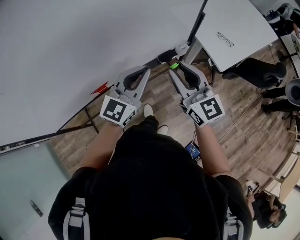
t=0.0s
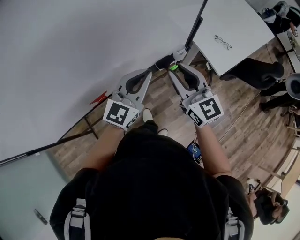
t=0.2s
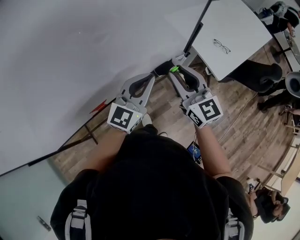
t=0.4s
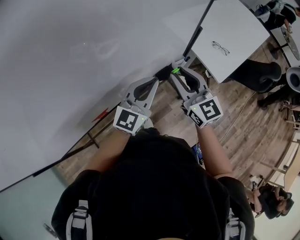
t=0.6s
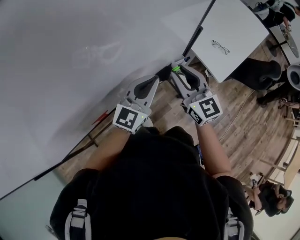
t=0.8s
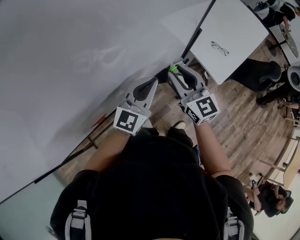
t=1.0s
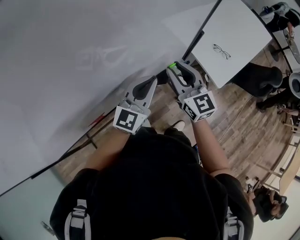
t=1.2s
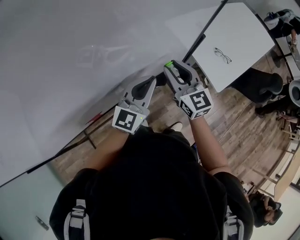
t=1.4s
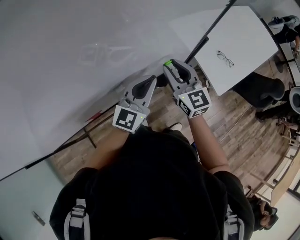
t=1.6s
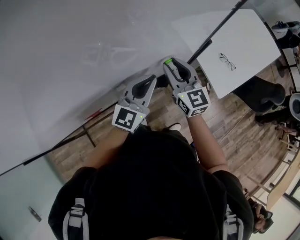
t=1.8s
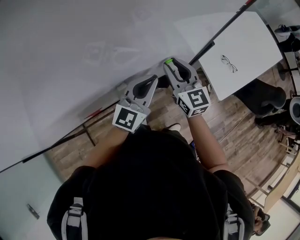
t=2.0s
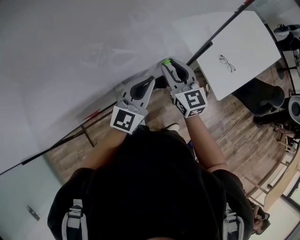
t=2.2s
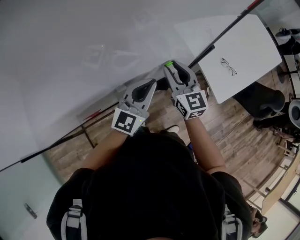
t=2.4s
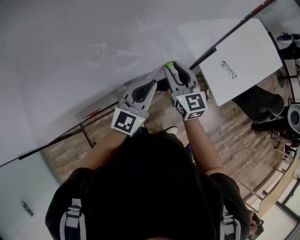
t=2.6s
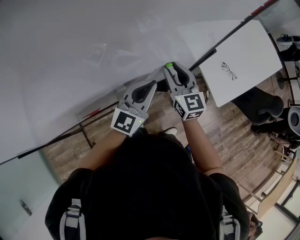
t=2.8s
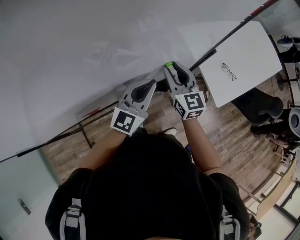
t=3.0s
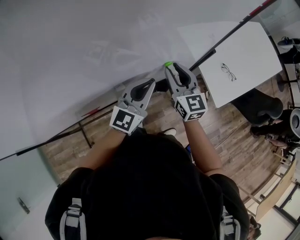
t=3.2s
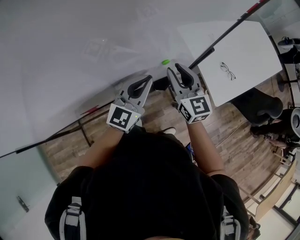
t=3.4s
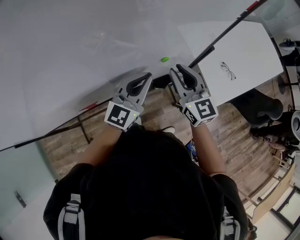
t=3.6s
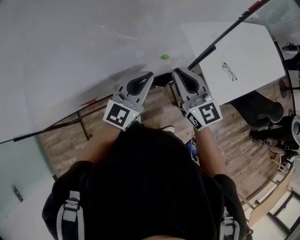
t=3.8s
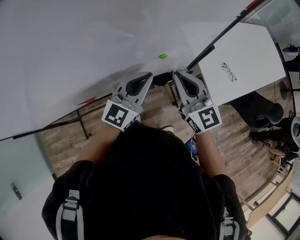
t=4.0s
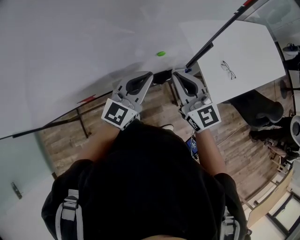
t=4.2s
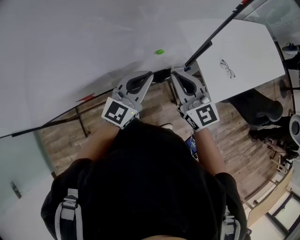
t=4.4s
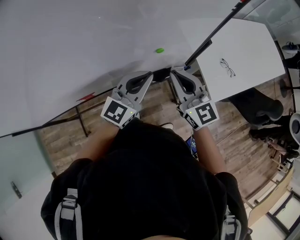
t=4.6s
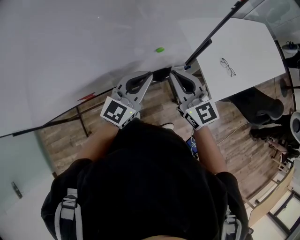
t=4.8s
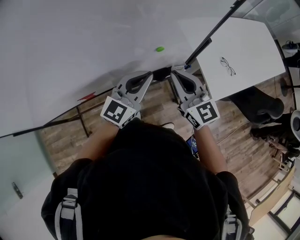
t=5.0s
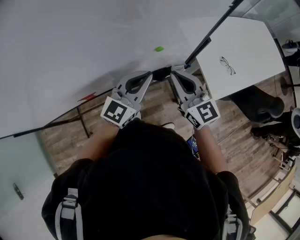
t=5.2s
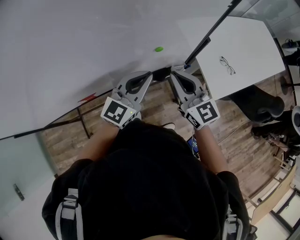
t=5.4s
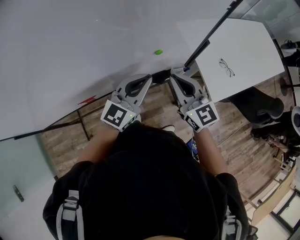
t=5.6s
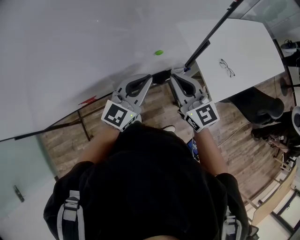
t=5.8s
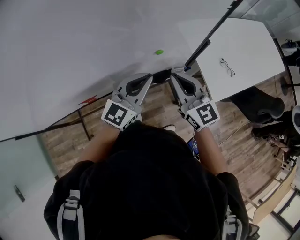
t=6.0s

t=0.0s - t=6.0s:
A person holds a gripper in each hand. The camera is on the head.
t=0.0s - t=1.6s: Both grippers travel together forward, approximately 20 cm.
t=1.6s - t=3.0s: The grippers move only a little.
t=3.0s - t=4.4s: The right gripper travels backward by some 10 cm, and closes its fingers.
t=4.4s - t=6.0s: Both grippers stay about where they are.

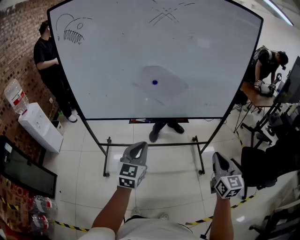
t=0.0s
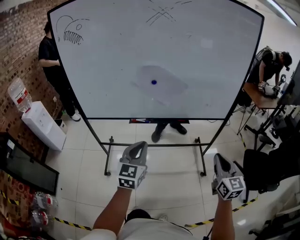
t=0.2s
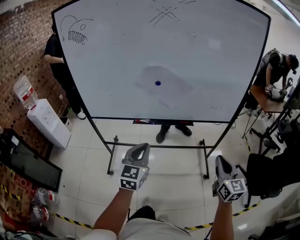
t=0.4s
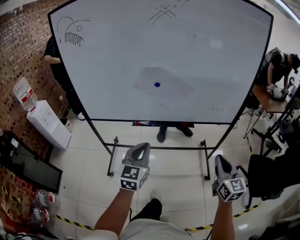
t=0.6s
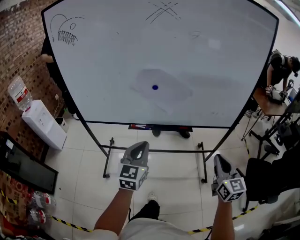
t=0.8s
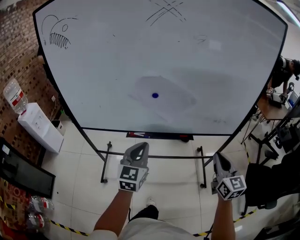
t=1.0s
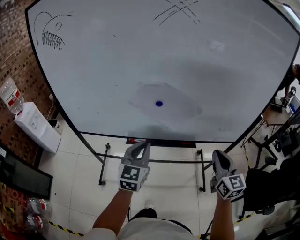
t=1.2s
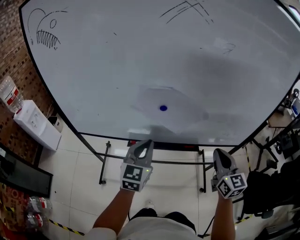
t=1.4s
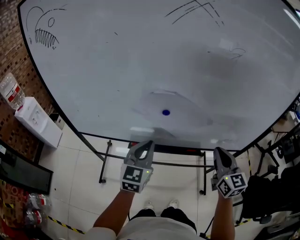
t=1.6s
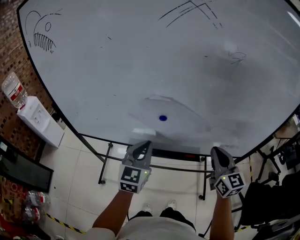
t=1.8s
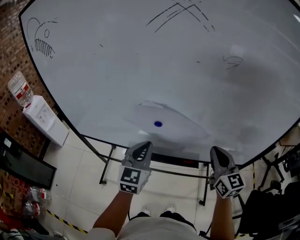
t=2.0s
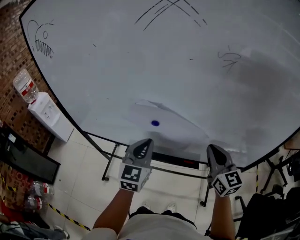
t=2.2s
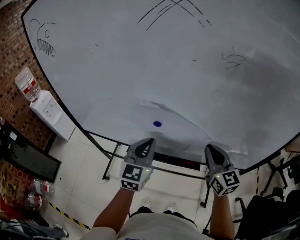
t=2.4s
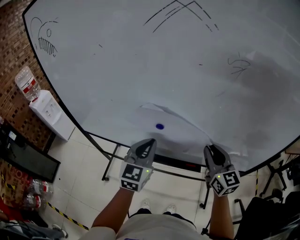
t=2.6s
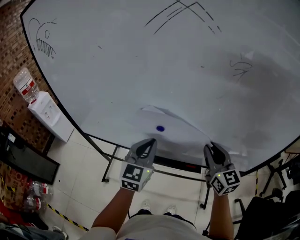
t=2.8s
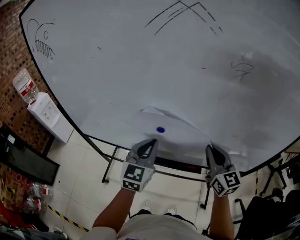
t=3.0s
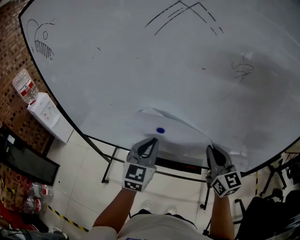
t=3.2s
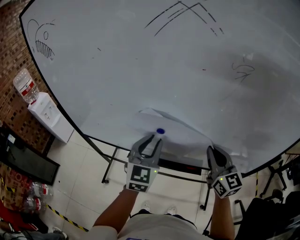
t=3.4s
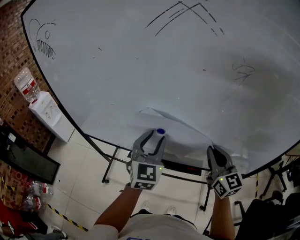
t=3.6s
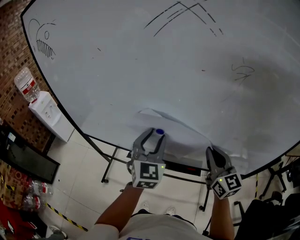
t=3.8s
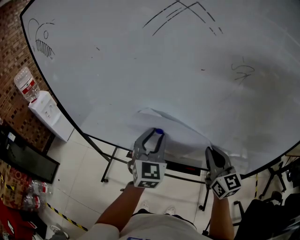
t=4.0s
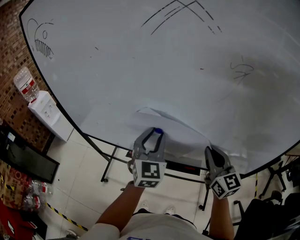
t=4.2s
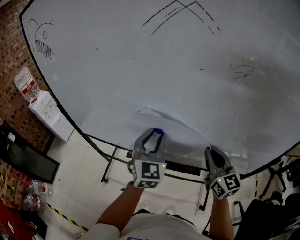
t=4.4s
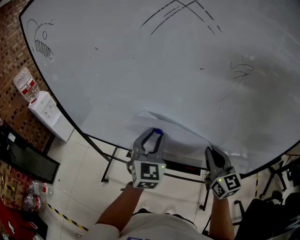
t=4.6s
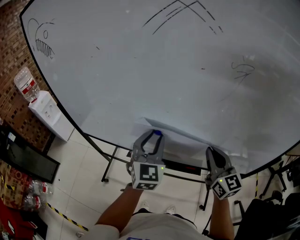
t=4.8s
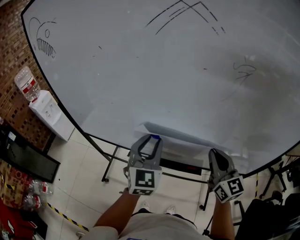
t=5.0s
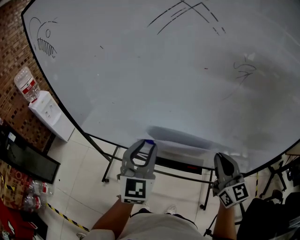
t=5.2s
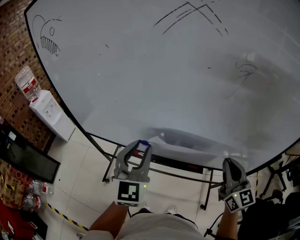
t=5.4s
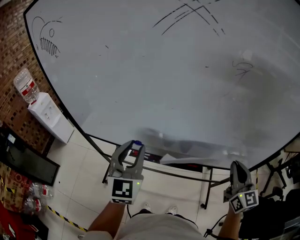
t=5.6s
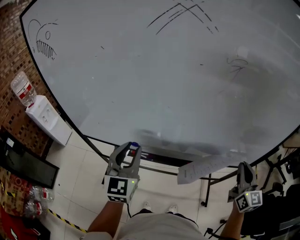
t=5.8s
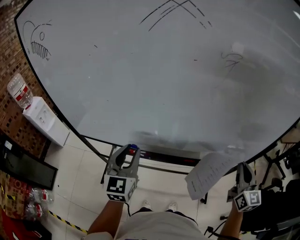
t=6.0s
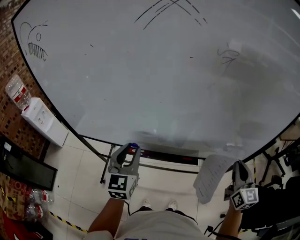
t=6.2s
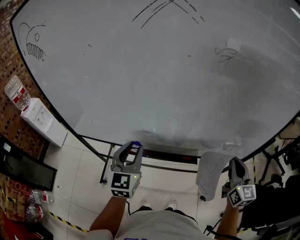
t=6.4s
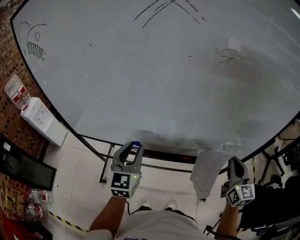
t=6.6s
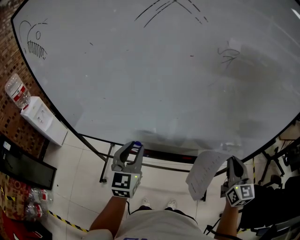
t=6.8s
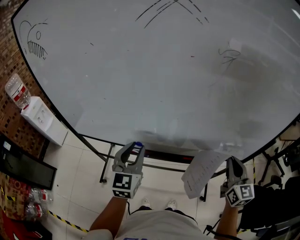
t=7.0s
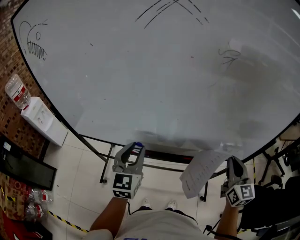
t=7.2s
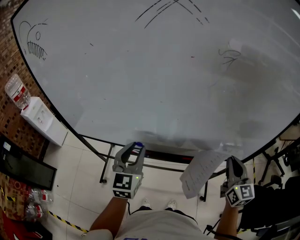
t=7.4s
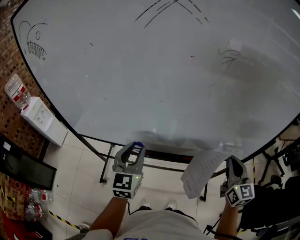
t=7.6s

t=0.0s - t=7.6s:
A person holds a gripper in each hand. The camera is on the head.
t=0.0s - t=1.6s: The two grippers go some 30 cm forward.
t=1.6s - t=3.0s: The right gripper goes some 10 cm forward. The left gripper travels forward by roughly 5 cm.
t=3.0s - t=4.6s: The left gripper opens.
t=4.6s - t=6.0s: The right gripper shifts some 20 cm to the right and backward, and rotates about 20 degrees. Meanwhile the left gripper shifts some 10 cm to the left and backward.
t=6.0s - t=7.6s: There are only small adjustments of the grippers.

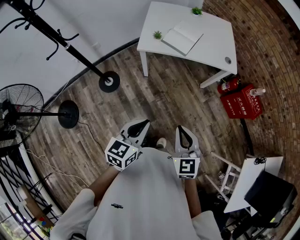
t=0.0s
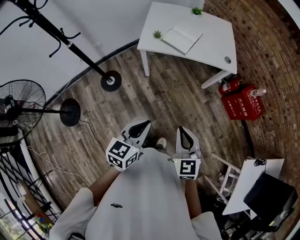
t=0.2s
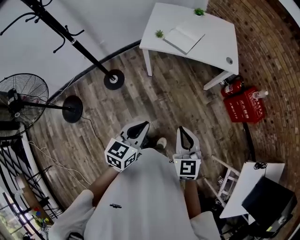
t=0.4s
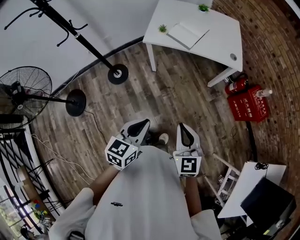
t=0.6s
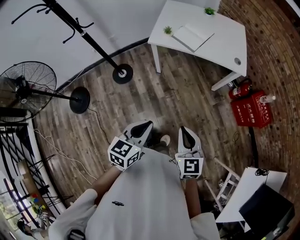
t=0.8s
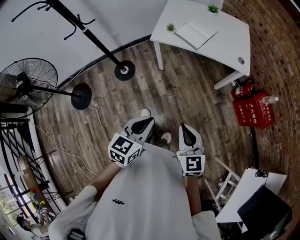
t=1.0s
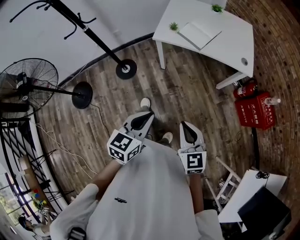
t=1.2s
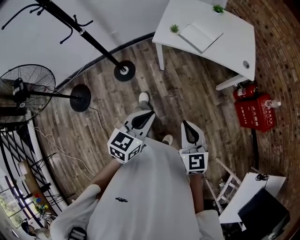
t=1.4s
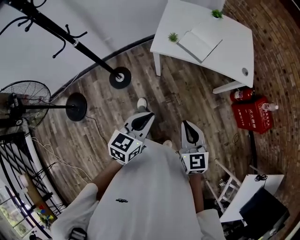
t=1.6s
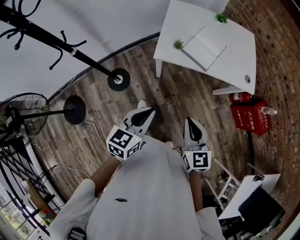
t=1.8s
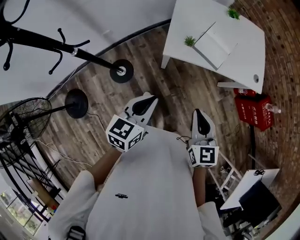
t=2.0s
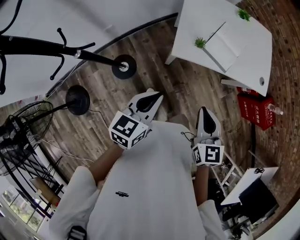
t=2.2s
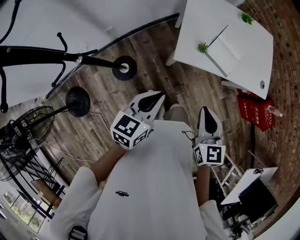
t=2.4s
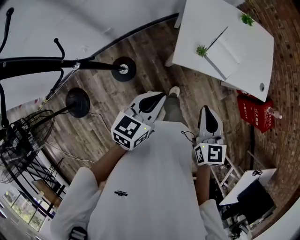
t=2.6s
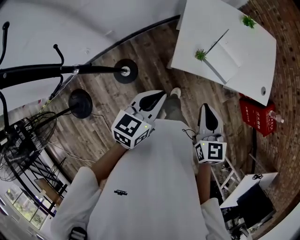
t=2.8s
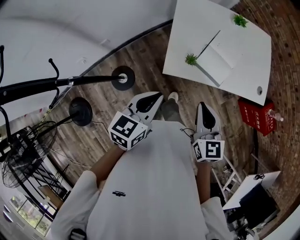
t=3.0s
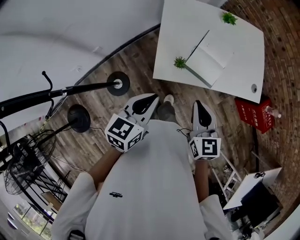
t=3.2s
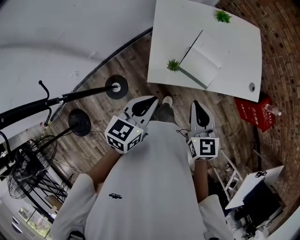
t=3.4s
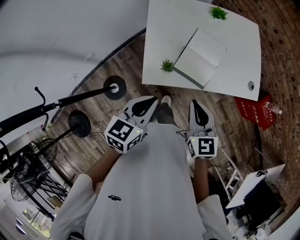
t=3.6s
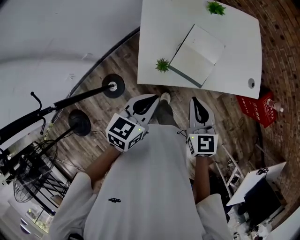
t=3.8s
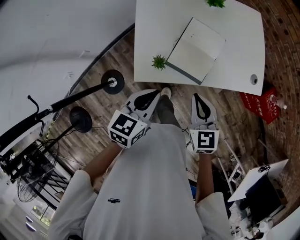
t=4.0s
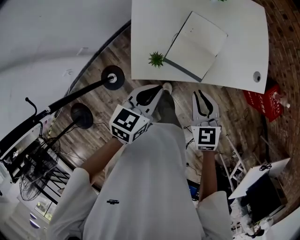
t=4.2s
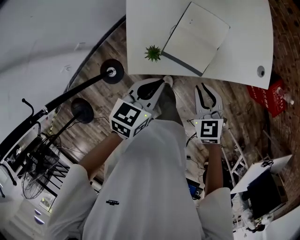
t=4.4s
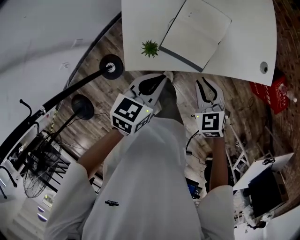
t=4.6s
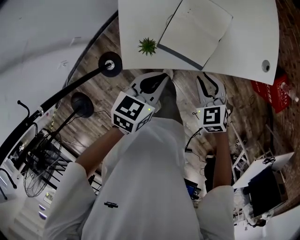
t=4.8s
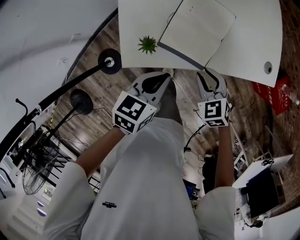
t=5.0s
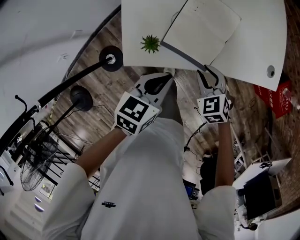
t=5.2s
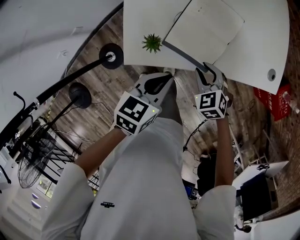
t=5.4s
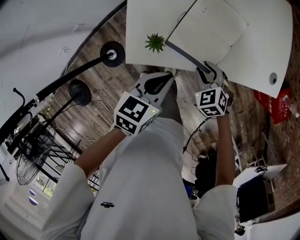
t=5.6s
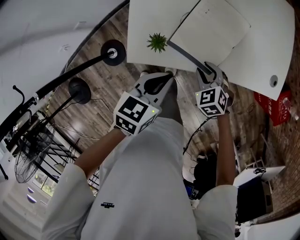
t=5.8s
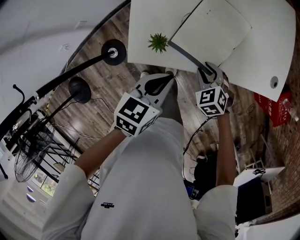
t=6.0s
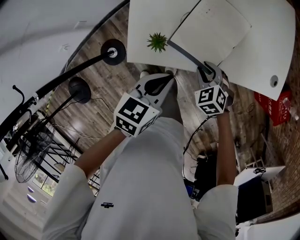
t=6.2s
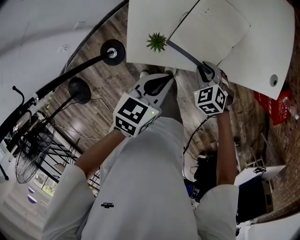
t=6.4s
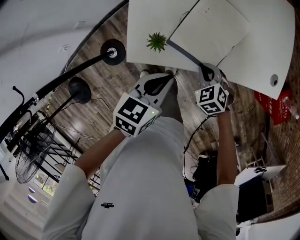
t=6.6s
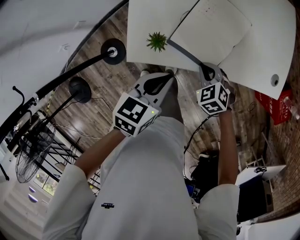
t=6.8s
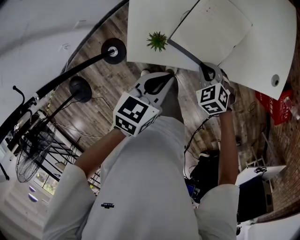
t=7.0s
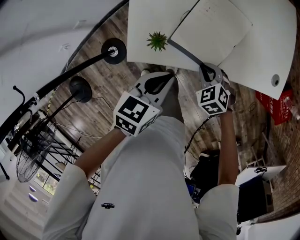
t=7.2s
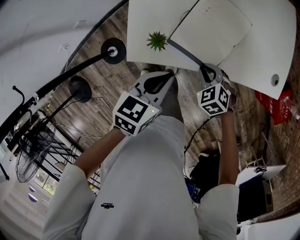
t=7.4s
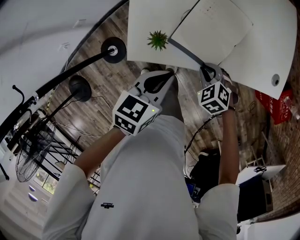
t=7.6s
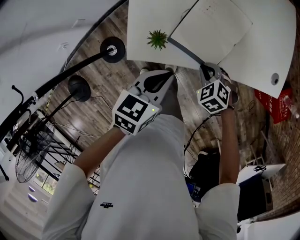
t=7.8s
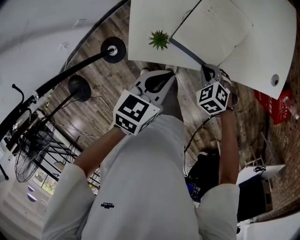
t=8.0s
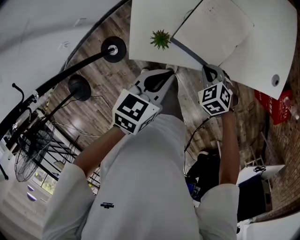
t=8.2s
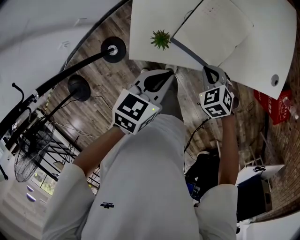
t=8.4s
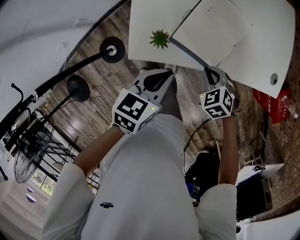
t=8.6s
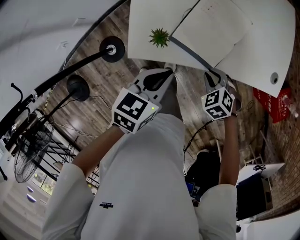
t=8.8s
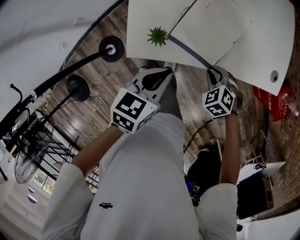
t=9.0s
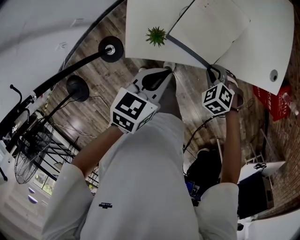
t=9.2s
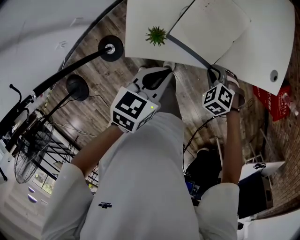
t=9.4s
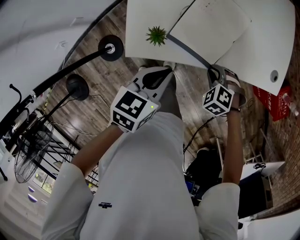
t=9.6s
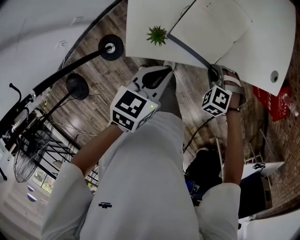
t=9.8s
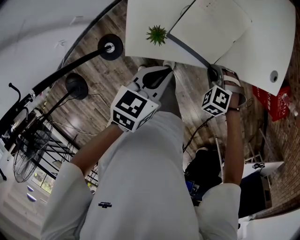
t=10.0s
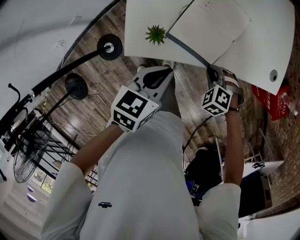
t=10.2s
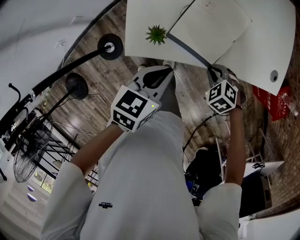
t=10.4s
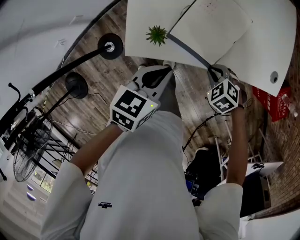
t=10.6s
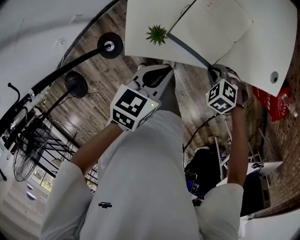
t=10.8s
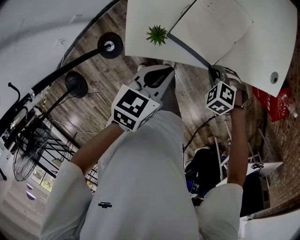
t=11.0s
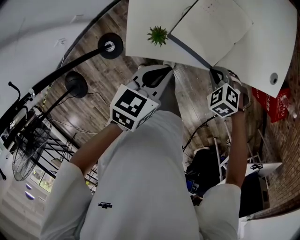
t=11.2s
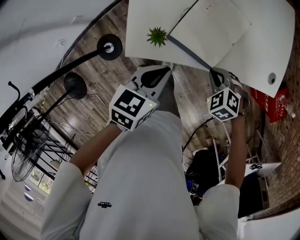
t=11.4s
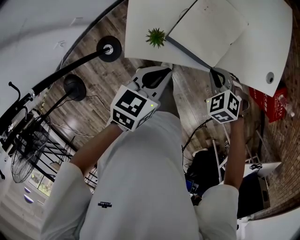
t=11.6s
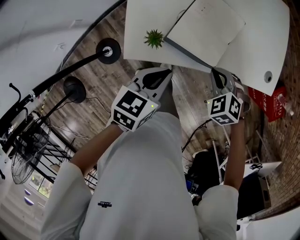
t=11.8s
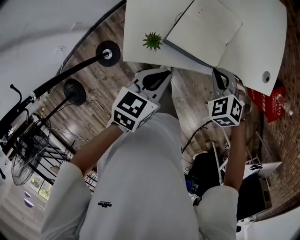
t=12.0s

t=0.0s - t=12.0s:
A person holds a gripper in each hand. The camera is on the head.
t=0.0s - t=1.6s: Both grippers travel together forward, roughly 10 cm.
t=1.6s - t=3.0s: The two grippers go about 35 cm forward and to the left.
t=3.0s - t=4.4s: The right gripper travels downward, to the right and forward by some 20 cm, and changes its angle by about 20 degrees. The left gripper heads to the right, forward and downward, covering about 25 cm.
t=4.4s - t=6.0s: The left gripper heads downward, covering about 5 cm, while the right gripper shifts roughly 15 cm downward, and turns by about 30 degrees.
t=6.0s - t=7.6s: The right gripper closes up.
t=7.6s - t=9.0s: The grippers move only a little.
t=10.4s - t=12.0s: The right gripper is displaced upward by approximately 10 cm.
